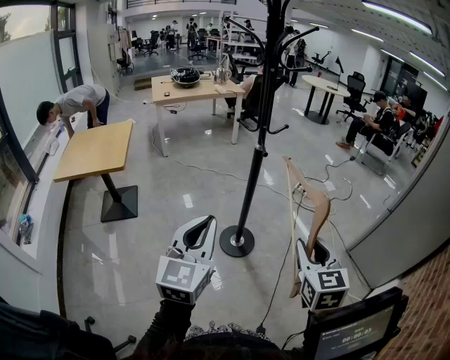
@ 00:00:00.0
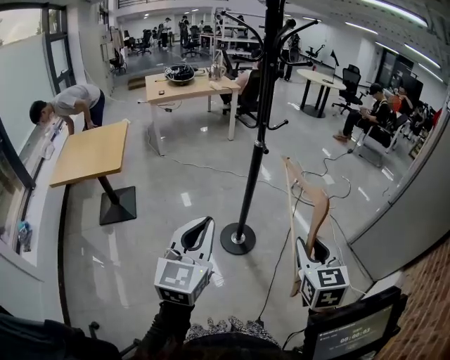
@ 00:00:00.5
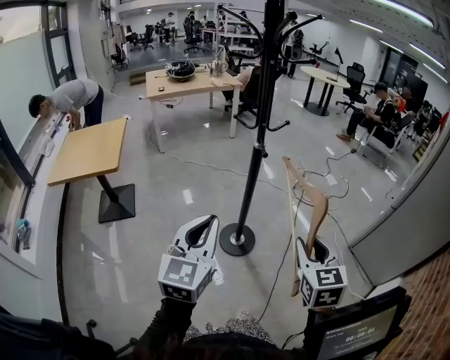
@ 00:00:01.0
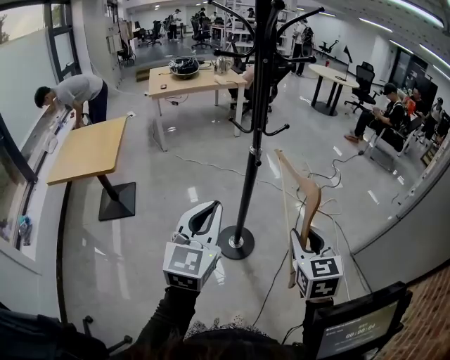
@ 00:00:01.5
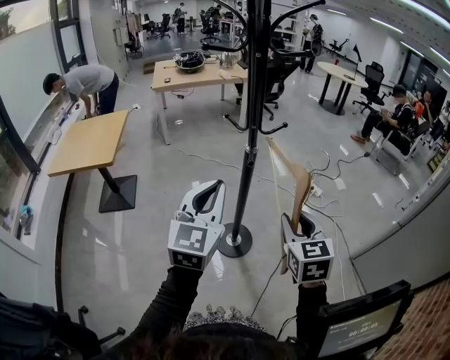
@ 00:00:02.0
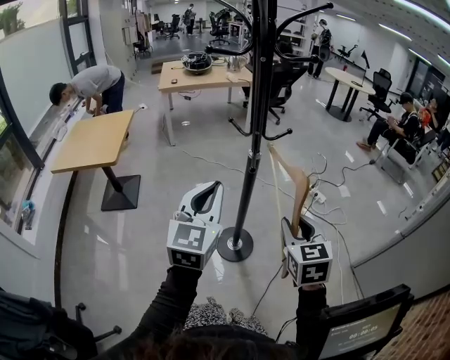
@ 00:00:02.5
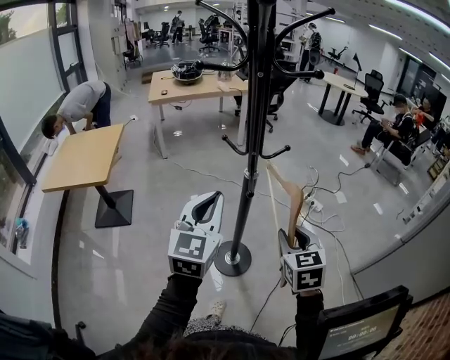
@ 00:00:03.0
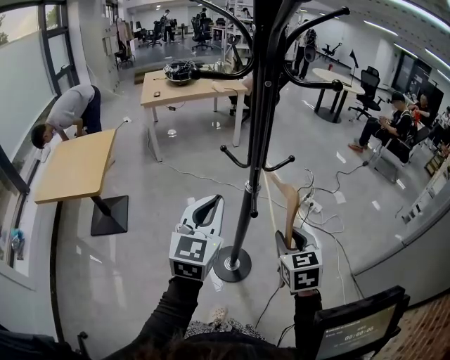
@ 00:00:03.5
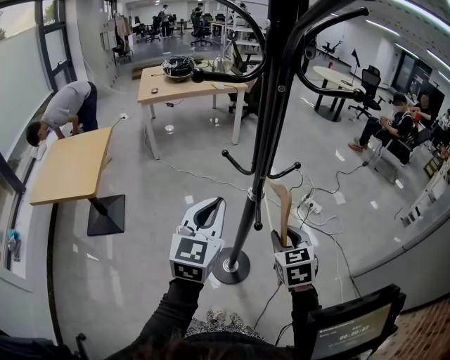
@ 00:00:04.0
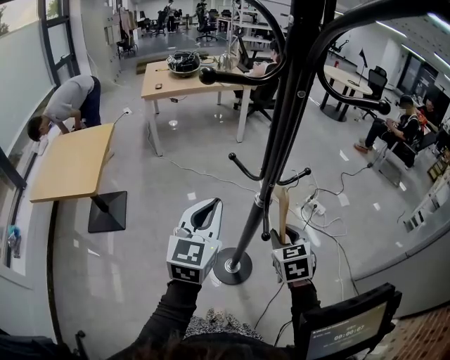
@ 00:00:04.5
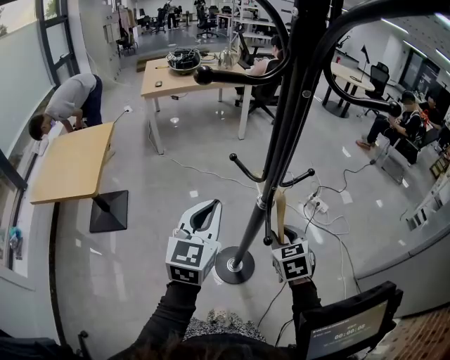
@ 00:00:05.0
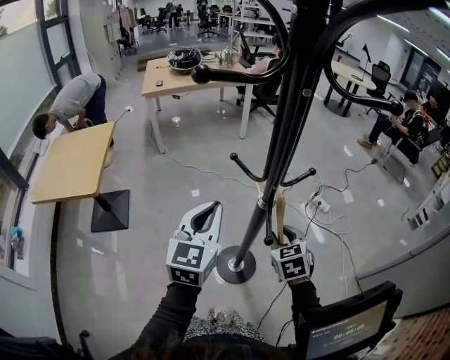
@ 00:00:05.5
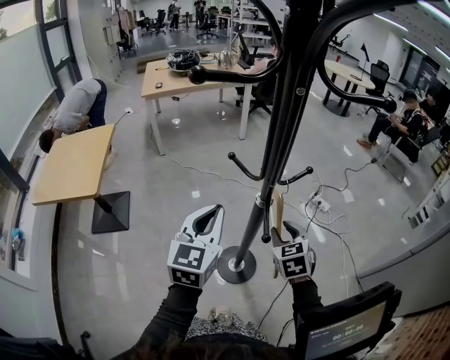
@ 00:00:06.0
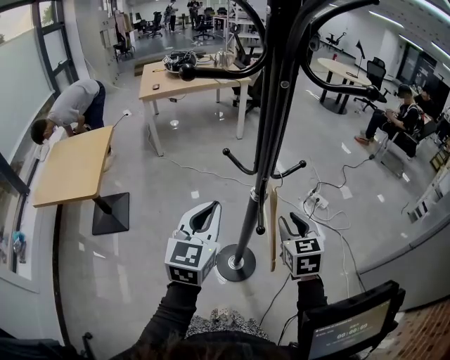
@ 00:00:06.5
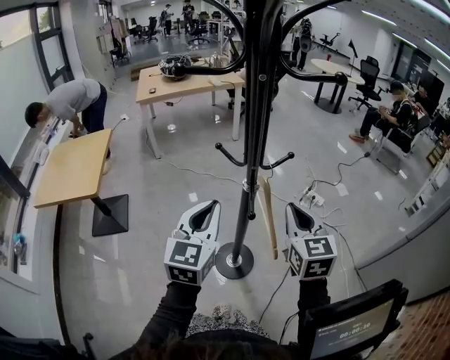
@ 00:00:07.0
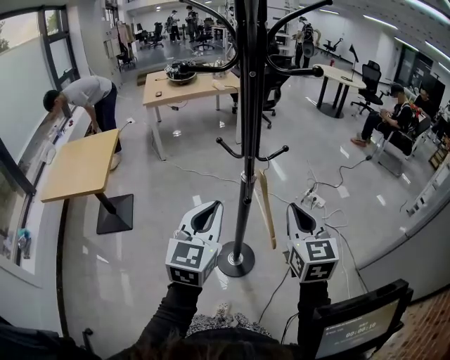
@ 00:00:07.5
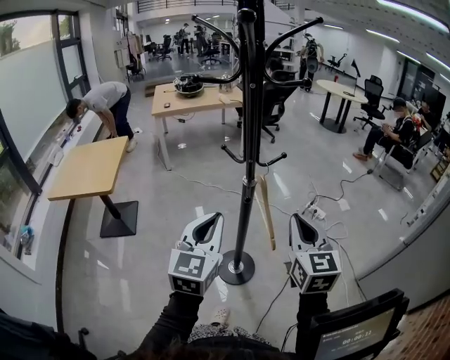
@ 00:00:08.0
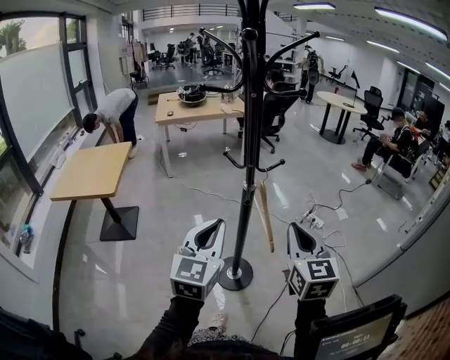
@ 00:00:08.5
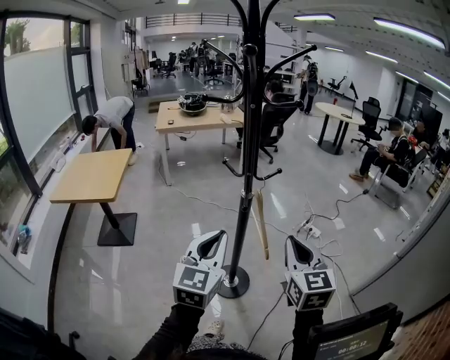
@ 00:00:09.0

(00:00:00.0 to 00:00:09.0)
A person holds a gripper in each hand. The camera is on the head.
00:00:00.0 - 00:00:02.0: Both grippers travel together forward, about 20 cm.
00:00:02.0 - 00:00:04.5: The left gripper shifts roughly 20 cm forward, while the right gripper moves forward and downward, roughly 25 cm.
00:00:04.5 - 00:00:07.0: The left gripper moves some 5 cm. The right gripper goes about 10 cm upward, turns by about 20 degrees, and closes.
00:00:07.0 - 00:00:09.0: The grippers both shift backward by about 15 cm.

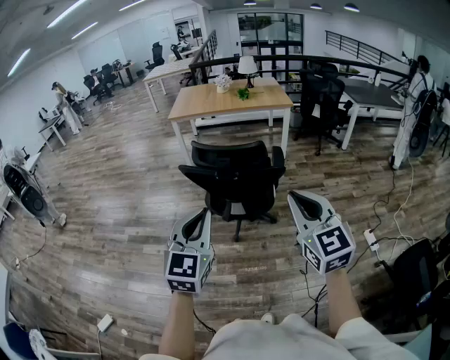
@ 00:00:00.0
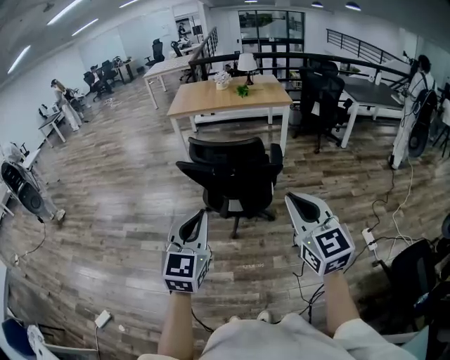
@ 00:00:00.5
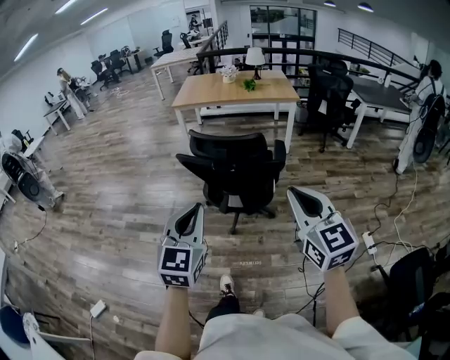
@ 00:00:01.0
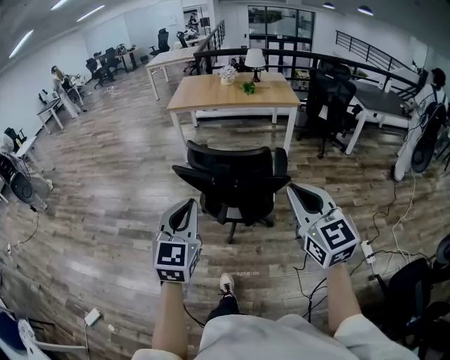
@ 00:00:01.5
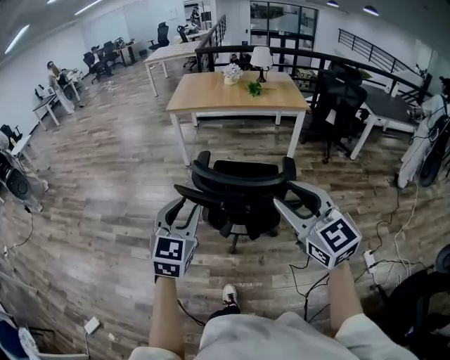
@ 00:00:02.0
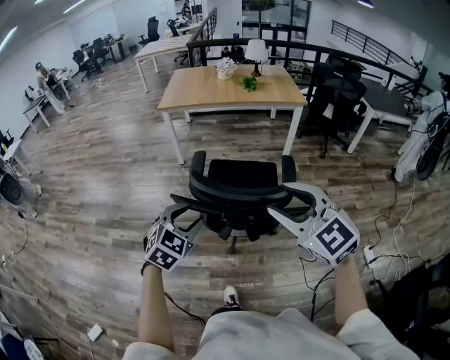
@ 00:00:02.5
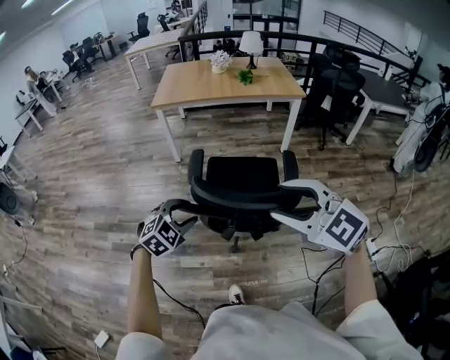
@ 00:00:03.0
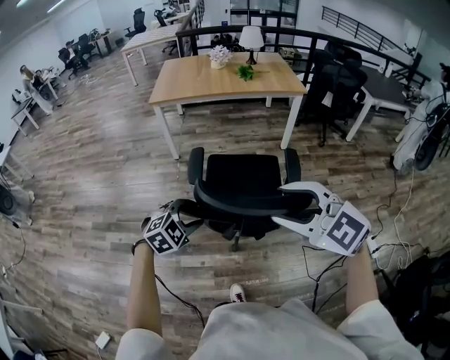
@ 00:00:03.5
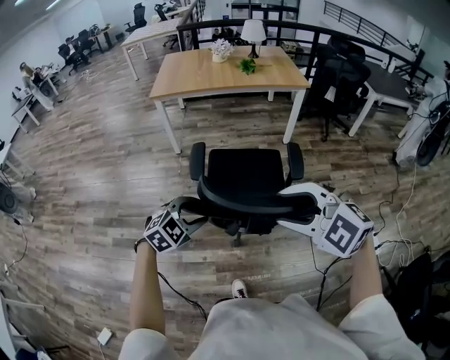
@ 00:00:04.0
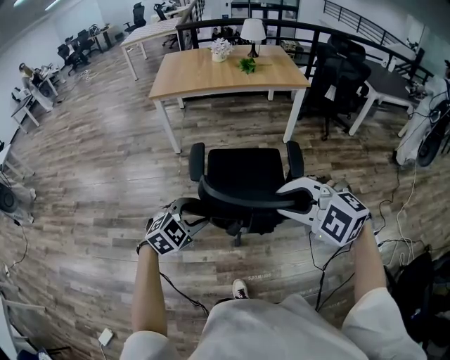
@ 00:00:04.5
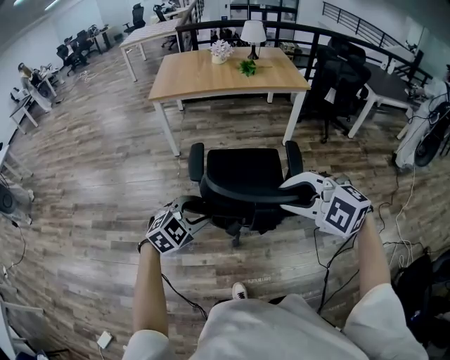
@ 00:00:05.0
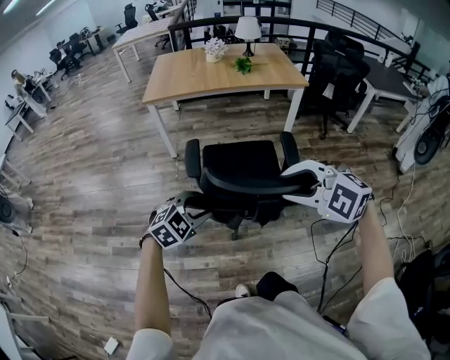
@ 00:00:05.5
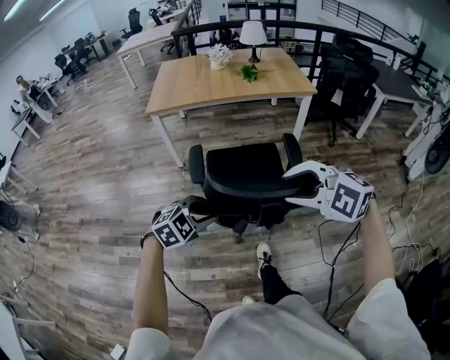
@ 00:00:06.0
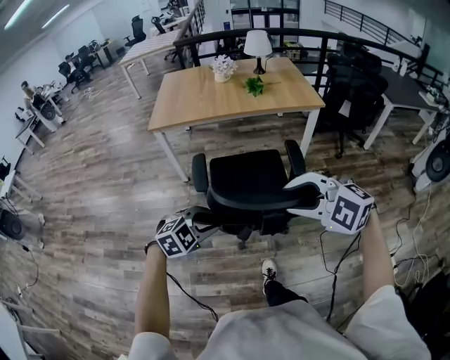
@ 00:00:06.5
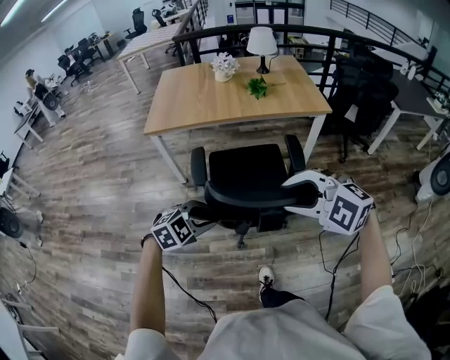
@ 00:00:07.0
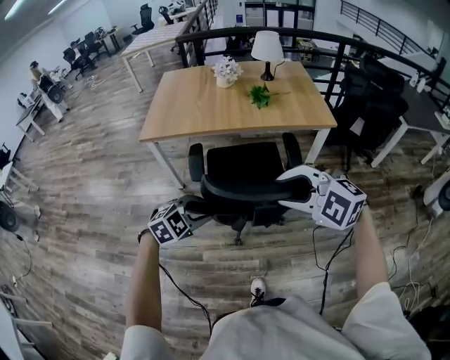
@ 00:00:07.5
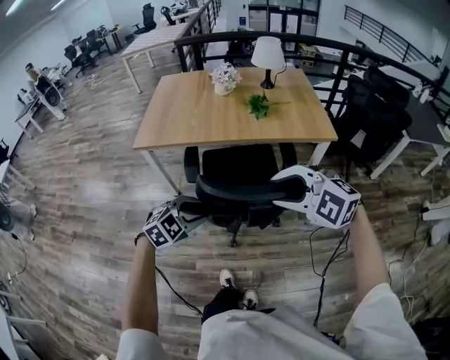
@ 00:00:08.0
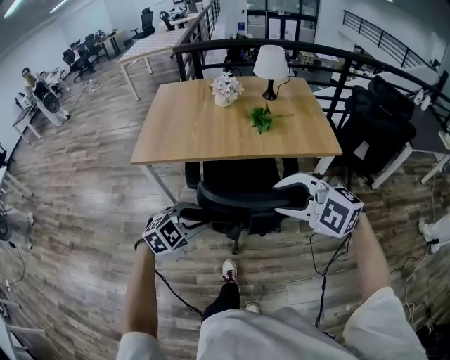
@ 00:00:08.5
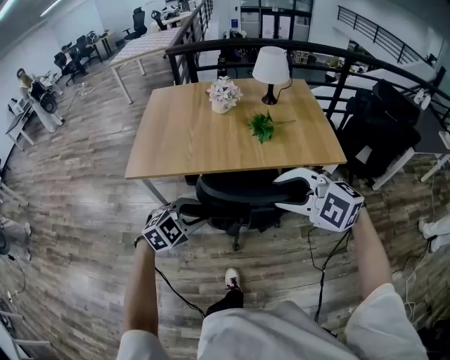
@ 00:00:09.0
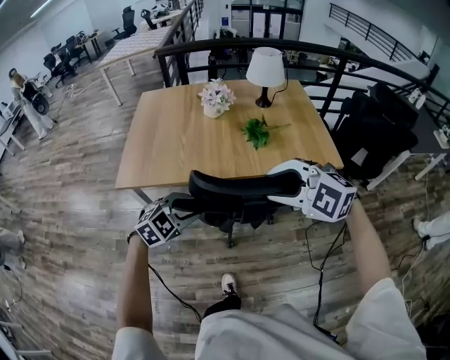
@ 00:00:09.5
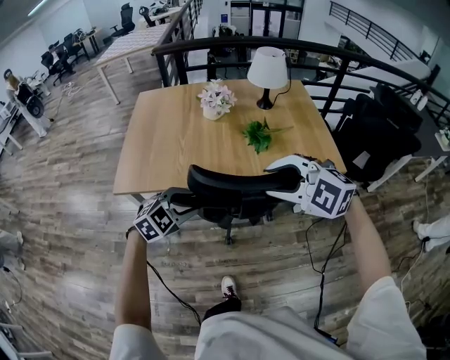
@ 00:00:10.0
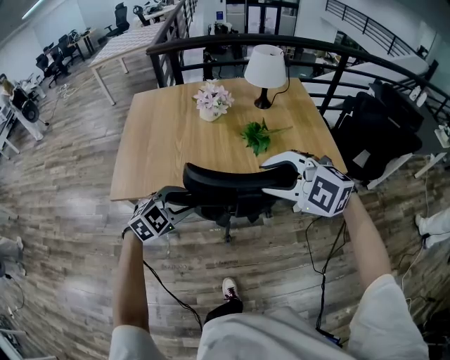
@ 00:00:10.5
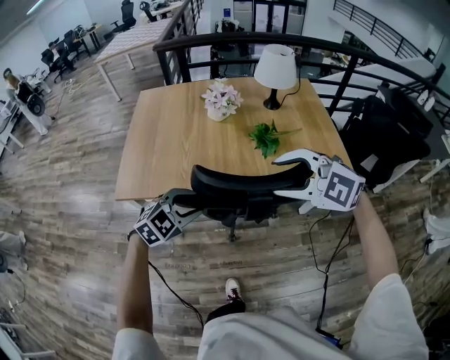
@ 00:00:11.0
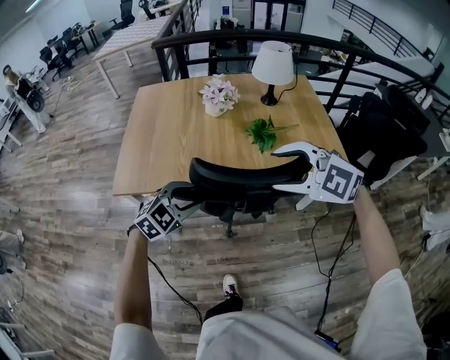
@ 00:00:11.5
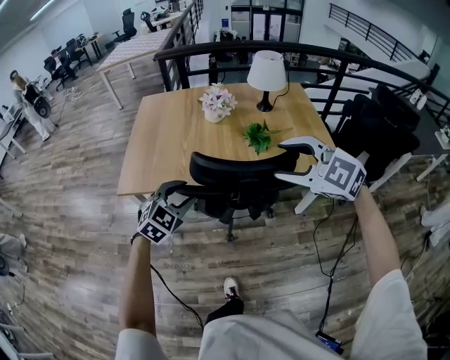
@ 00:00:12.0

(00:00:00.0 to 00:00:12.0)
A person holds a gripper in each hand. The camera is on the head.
00:00:00.0 - 00:00:02.0: The grippers both shift forward by roughly 25 cm. The left gripper opens its fingers. Meanwhile the right gripper opens its fingers.
00:00:02.0 - 00:00:04.0: The left gripper heads downward and forward, covering about 20 cm, and tips its fingers downward by some 30 degrees. The right gripper shifts about 15 cm forward, downward and to the left, and changes its angle by roughly 40 degrees.
00:00:04.0 - 00:00:06.0: Both grippers move forward, roughly 15 cm.
00:00:06.0 - 00:00:08.0: Both grippers move forward, about 35 cm.
00:00:08.0 - 00:00:10.0: Both grippers move forward, roughly 30 cm.
00:00:10.0 - 00:00:12.0: The right gripper ends up roughly 5 cm from where it was.

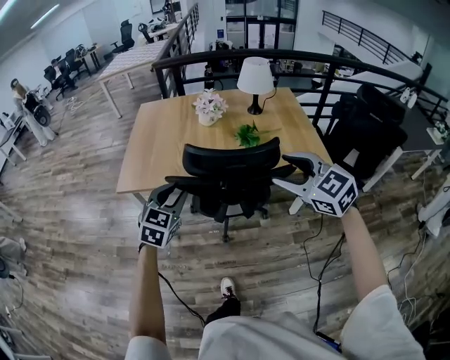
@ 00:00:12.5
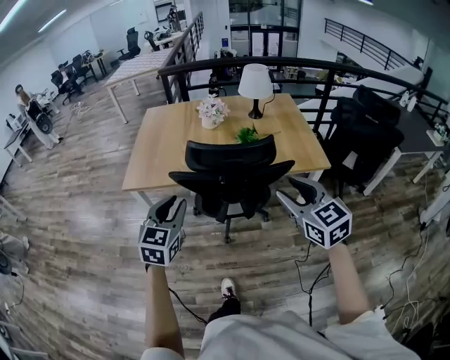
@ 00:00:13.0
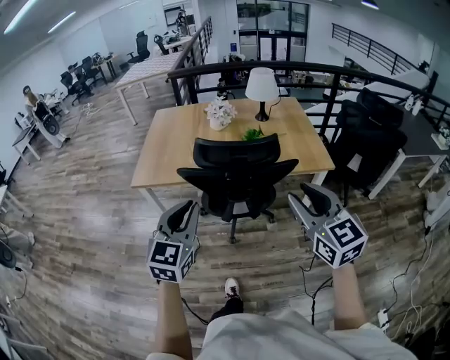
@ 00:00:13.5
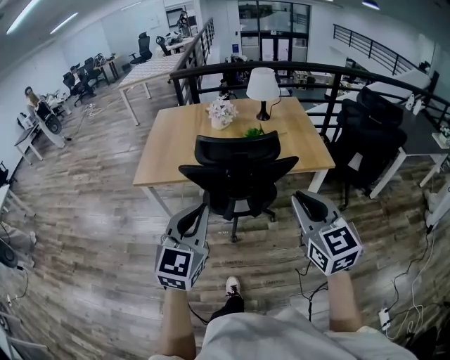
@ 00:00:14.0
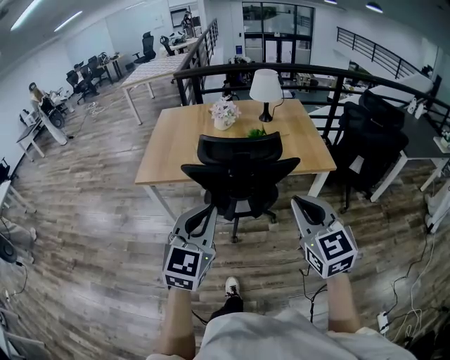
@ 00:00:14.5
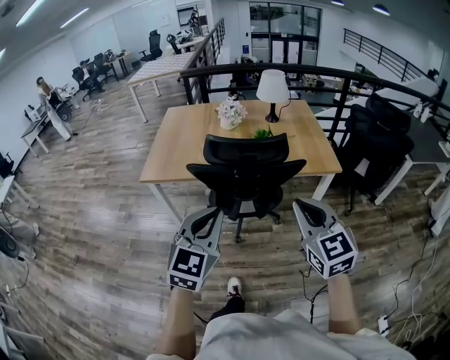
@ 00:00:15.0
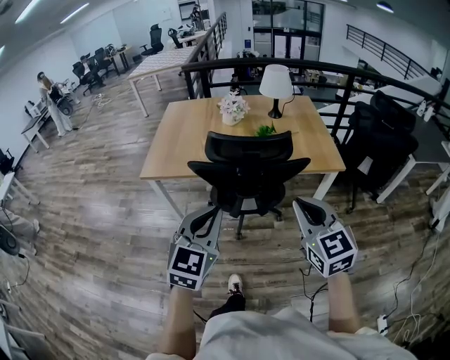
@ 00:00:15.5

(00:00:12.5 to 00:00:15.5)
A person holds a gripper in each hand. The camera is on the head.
00:00:12.5 - 00:00:14.0: The right gripper shifts roughly 15 cm backward, turns by about 30 degrees, and closes up. Meanwhile the left gripper moves backward and upward, approximately 25 cm, and closes its fingers.
00:00:14.0 - 00:00:15.5: The grippers stay close to where they were, moving slightly.
